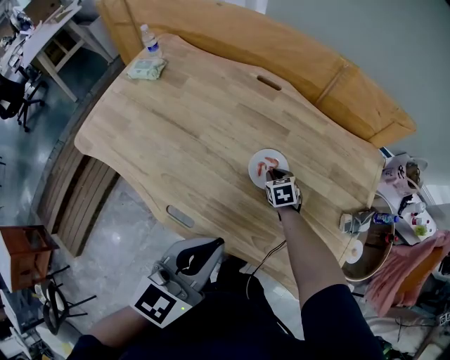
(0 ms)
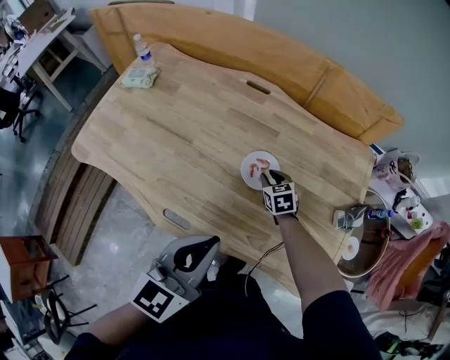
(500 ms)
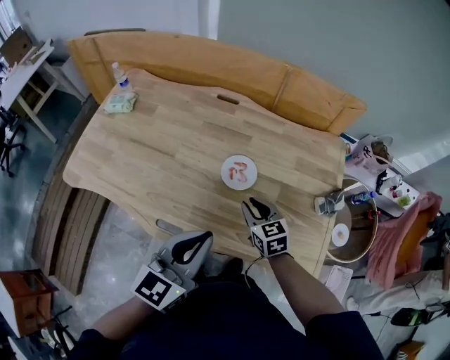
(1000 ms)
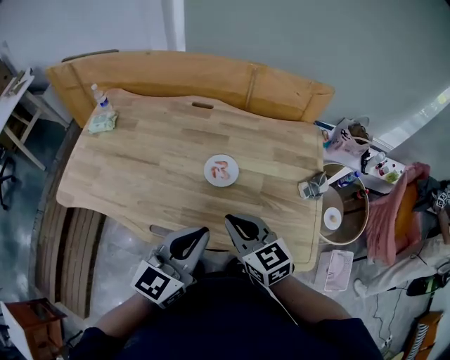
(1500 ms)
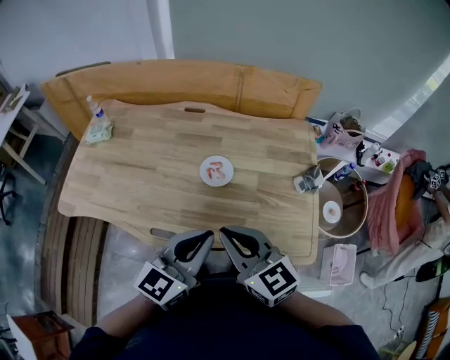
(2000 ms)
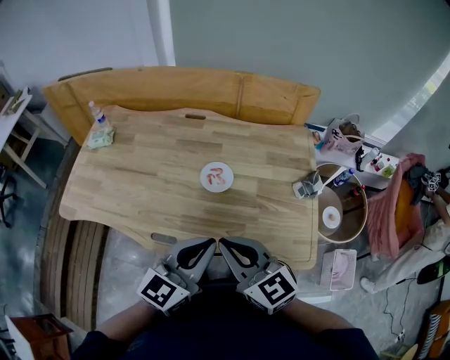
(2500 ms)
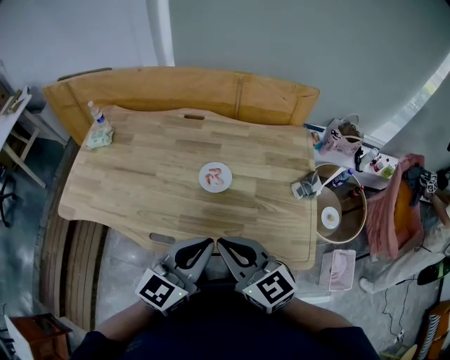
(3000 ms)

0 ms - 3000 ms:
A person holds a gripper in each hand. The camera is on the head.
0 ms - 1500 ms: The left gripper travels backward by about 5 cm. Meanwhile the right gripper is displaced upward and backward by approximately 40 cm, and angles its fingers upward, by about 30 degrees.
1500 ms - 3000 ms: The right gripper is displaced backward and upward by approximately 10 cm.

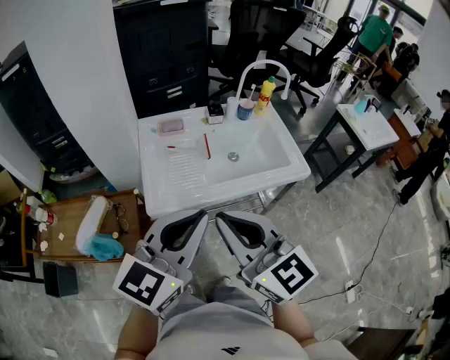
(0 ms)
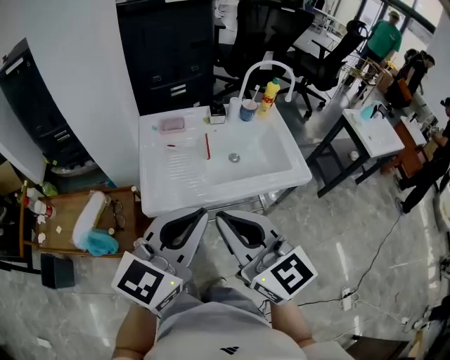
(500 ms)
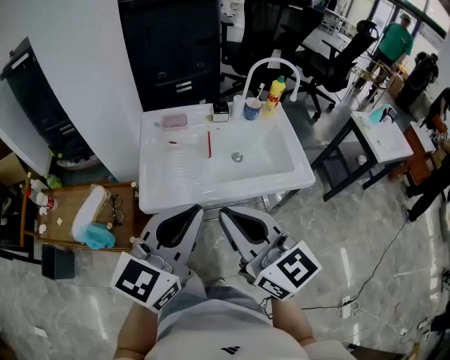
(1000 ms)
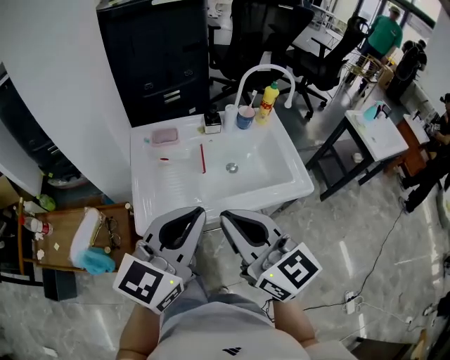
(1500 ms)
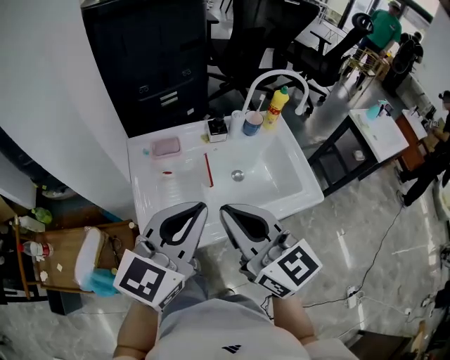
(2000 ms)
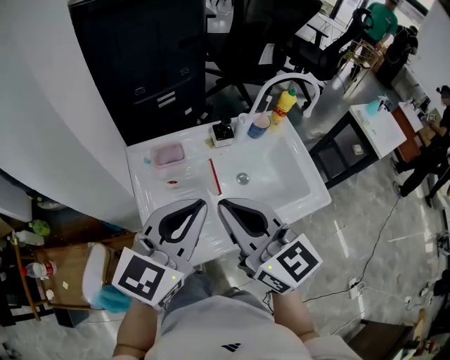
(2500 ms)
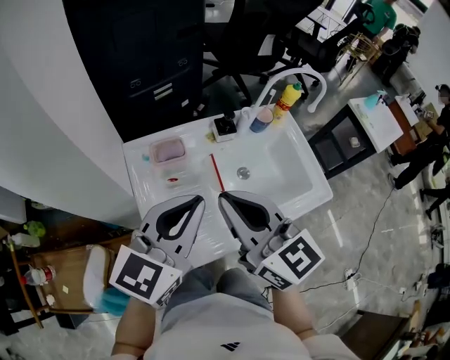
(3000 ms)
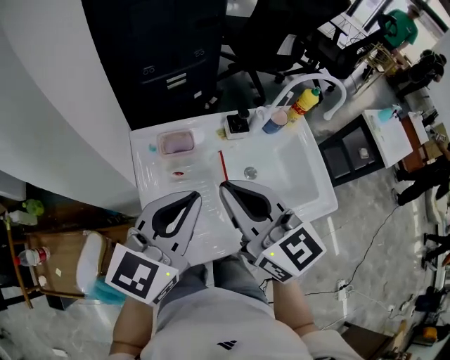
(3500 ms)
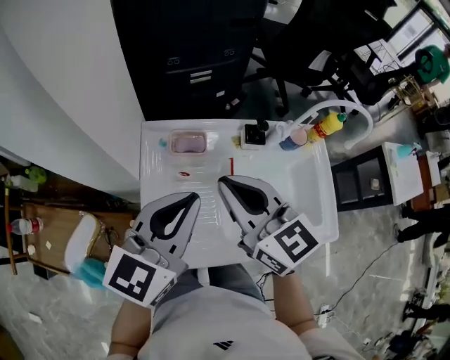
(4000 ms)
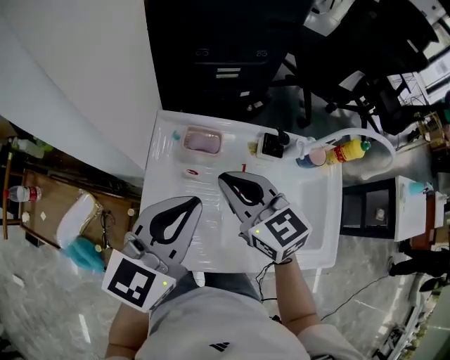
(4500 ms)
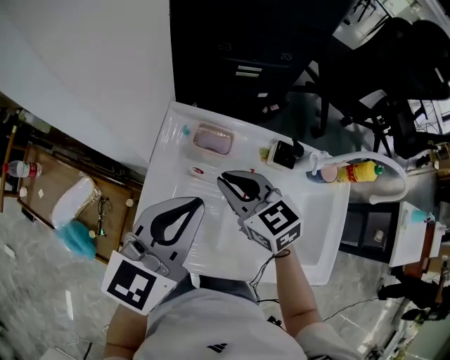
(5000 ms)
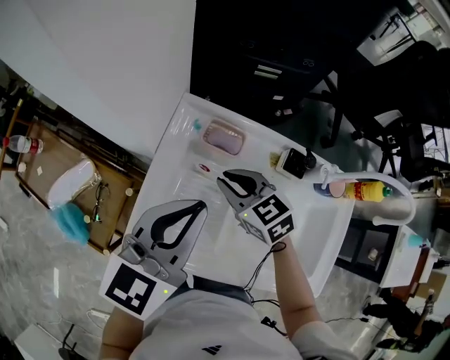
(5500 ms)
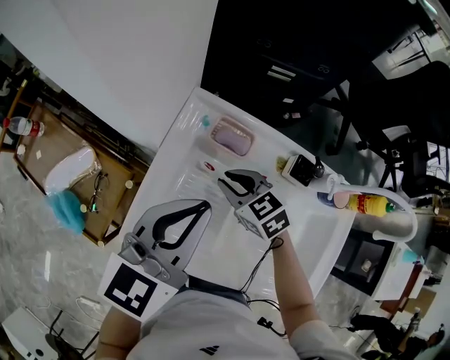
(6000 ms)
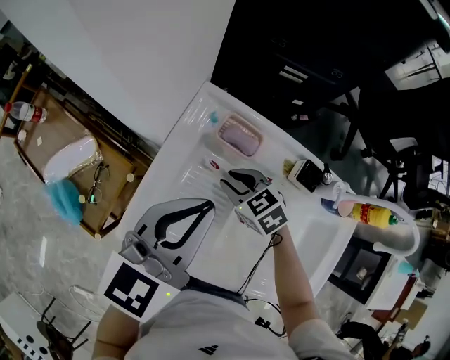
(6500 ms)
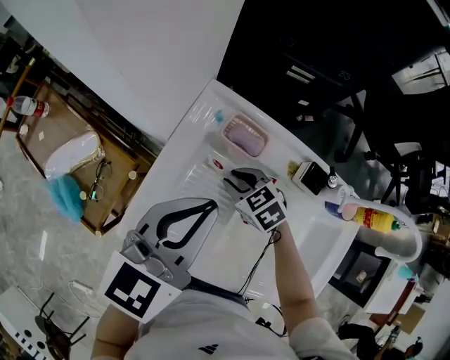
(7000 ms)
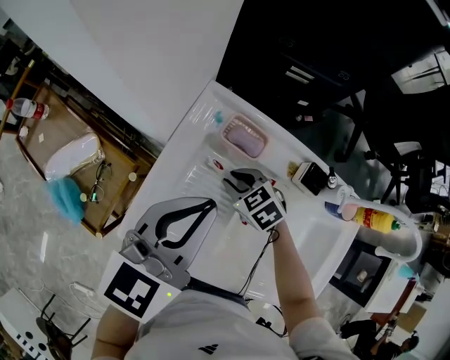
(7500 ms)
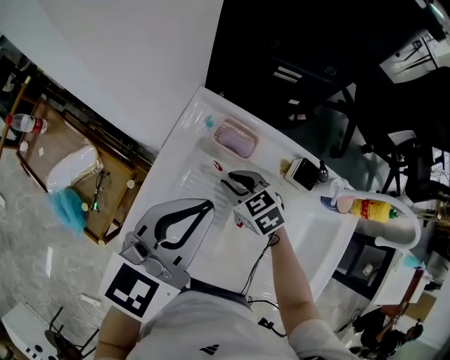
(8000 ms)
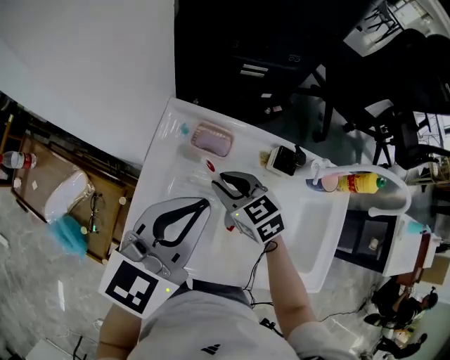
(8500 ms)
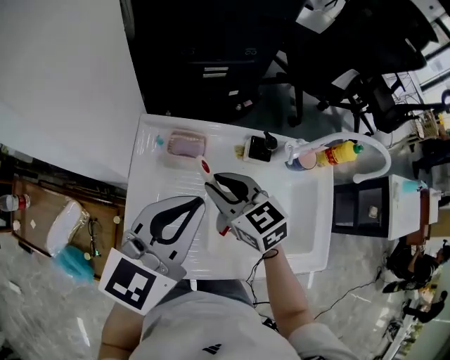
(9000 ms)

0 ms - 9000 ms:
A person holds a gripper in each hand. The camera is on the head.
0 ms - 2000 ms: The grippers both shift forward by about 15 cm.
2000 ms - 4500 ms: The left gripper moves roughly 15 cm, and rotates some 20 degrees. Meanwhile the right gripper shifts by about 25 cm, and swivels some 30 degrees.
4500 ms - 7000 ms: The left gripper travels downward by about 5 cm. Meanwhile the right gripper goes some 25 cm downward, angles its fingers downward, by approximately 30 degrees, and opens its fingers.
7000 ms - 9000 ms: The right gripper travels upward by some 15 cm, and turns by some 40 degrees. The left gripper shifts by roughly 5 cm.

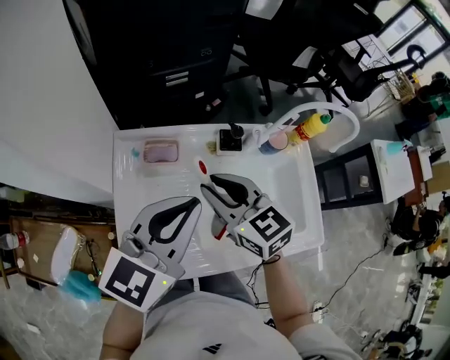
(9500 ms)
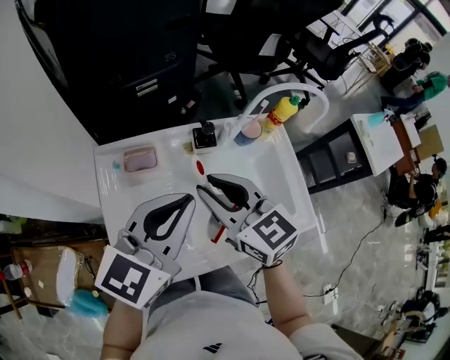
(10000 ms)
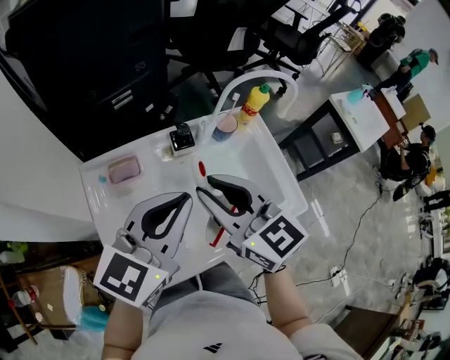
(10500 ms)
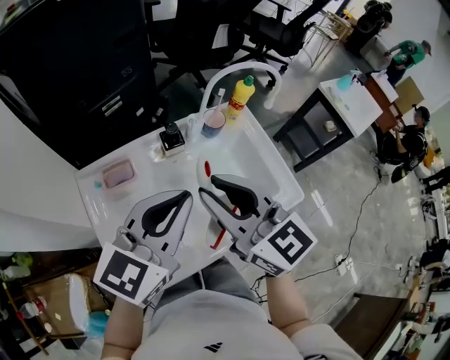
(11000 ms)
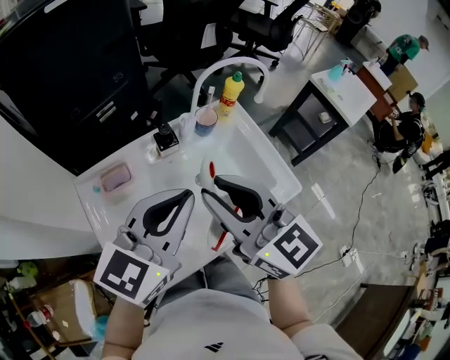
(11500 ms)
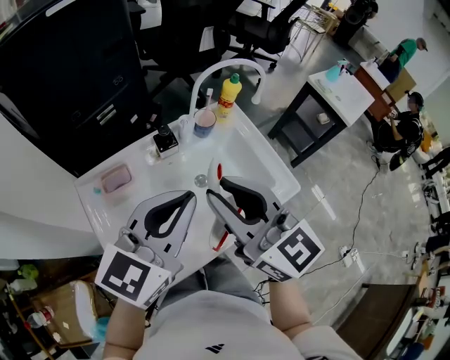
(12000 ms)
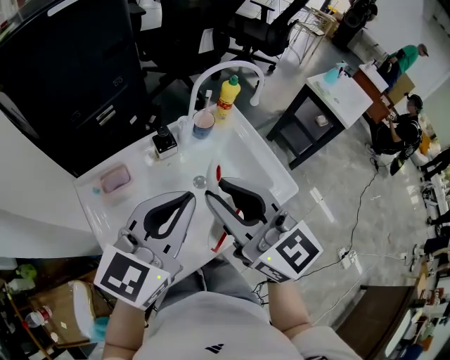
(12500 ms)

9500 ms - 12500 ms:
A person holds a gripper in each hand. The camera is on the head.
9500 ms - 11000 ms: The right gripper is displaced upward, to the right and backward by roughly 15 cm, and rotates approximately 30 degrees; the left gripper heads to the right, covering approximately 10 cm.
11000 ms - 12500 ms: The grippers move only a little.

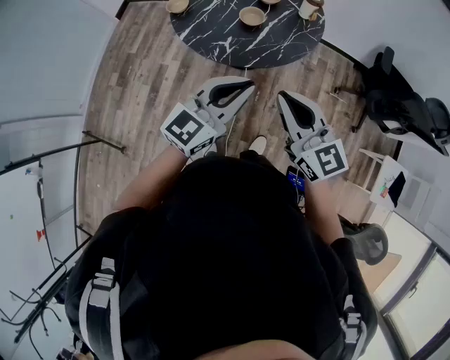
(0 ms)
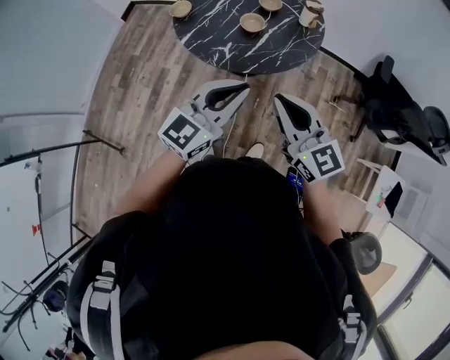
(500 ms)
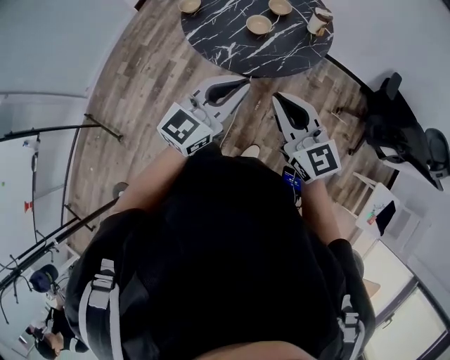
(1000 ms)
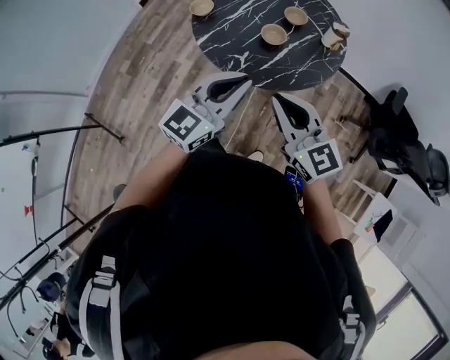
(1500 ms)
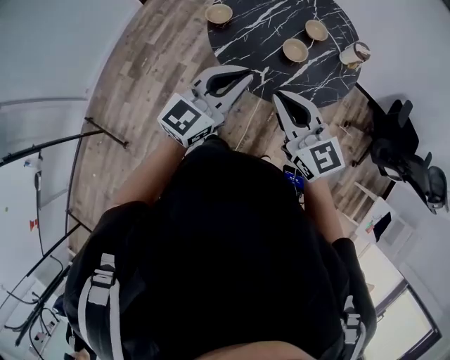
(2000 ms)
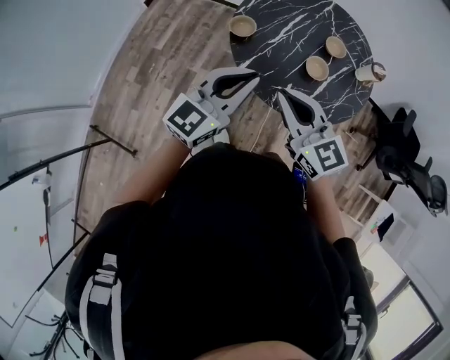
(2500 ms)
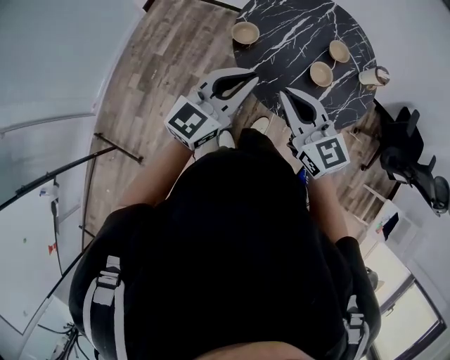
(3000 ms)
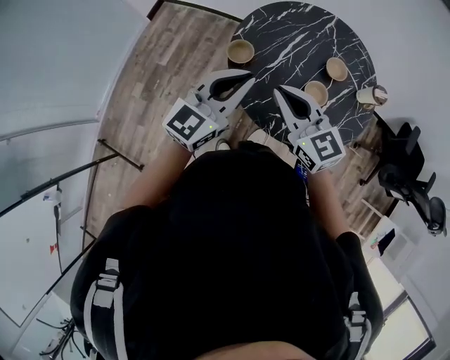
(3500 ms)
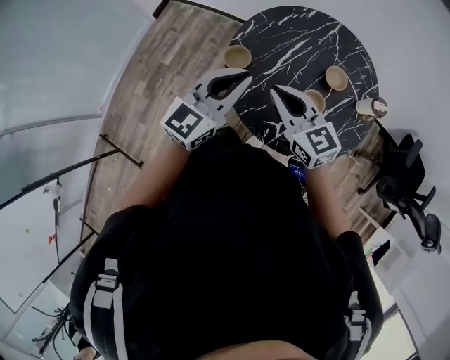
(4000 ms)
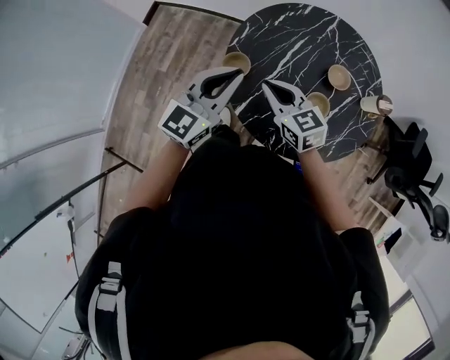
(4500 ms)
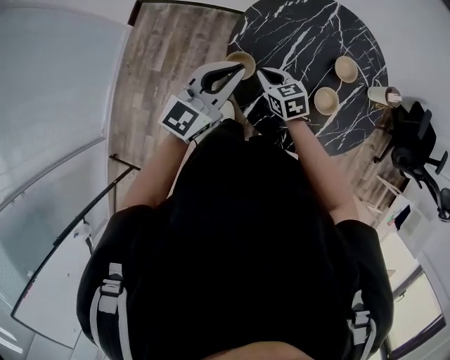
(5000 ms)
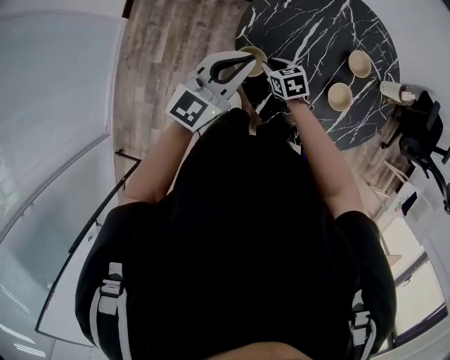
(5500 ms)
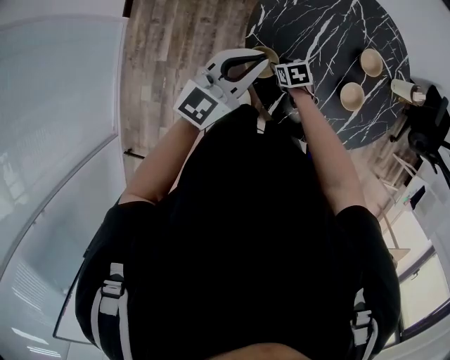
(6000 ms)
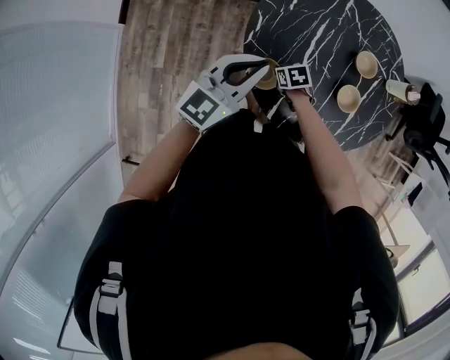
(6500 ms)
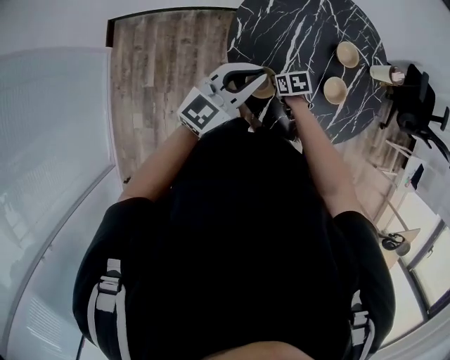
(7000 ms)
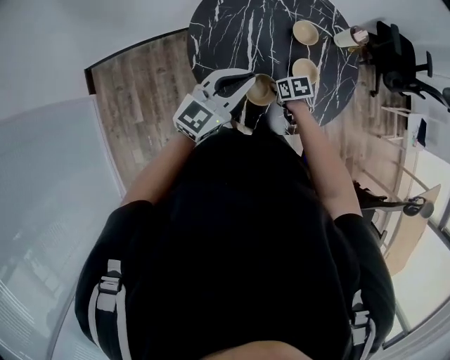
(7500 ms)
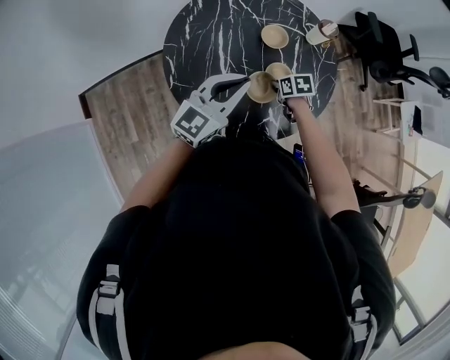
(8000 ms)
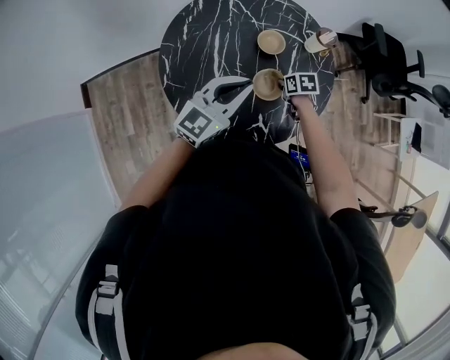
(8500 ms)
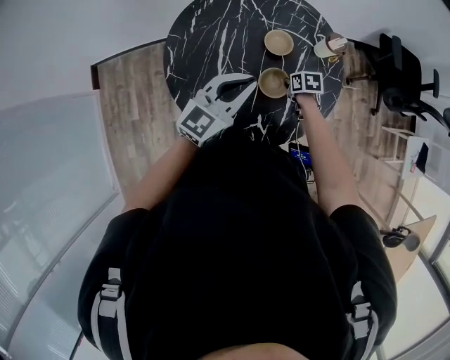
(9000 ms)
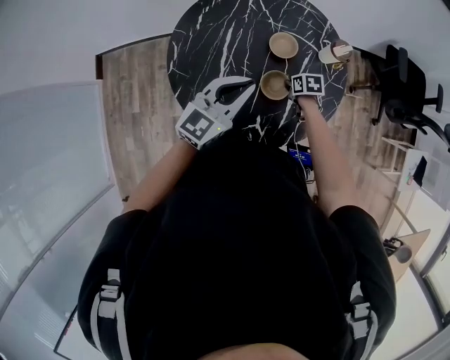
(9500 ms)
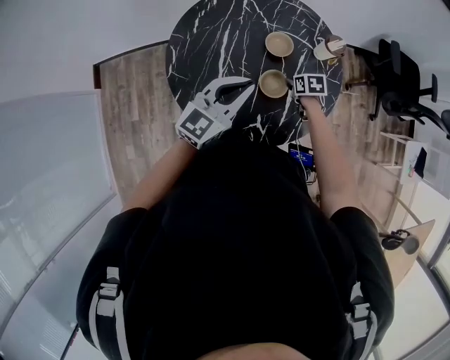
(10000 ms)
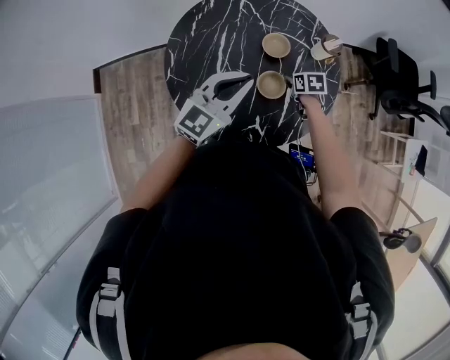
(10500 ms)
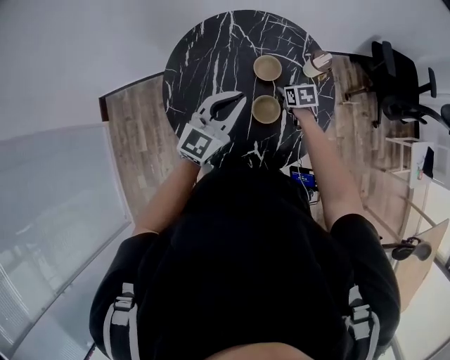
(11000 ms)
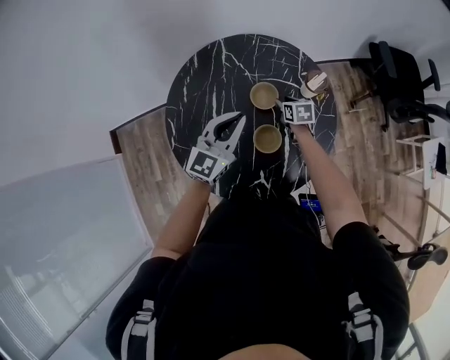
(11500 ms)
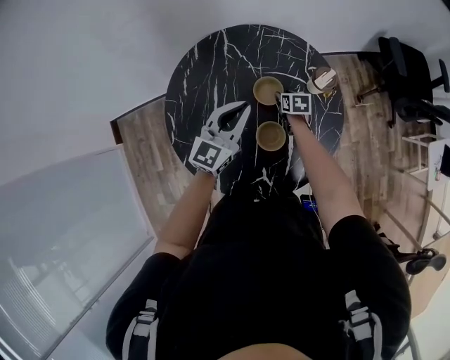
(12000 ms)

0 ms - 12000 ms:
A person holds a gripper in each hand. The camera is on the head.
0 ms - 2000 ms: The grippers both shift forward and to the left by approximately 25 cm.
2000 ms - 4000 ms: The grippers both shift forward by about 25 cm.
4000 ms - 6000 ms: The left gripper goes roughly 25 cm forward, downward and to the left. Meanwhile the right gripper is displaced downward and forward by roughly 40 cm, points its fingers about 50 degrees further downward, and opens its fingers.
6000 ms - 8000 ms: The right gripper changes place by roughly 30 cm, changes its angle by approximately 40 degrees, and closes up. The left gripper changes place by about 20 cm, and turns by about 30 degrees.
8000 ms - 10000 ms: Both grippers travel together to the right, about 10 cm. The right gripper opens up.
10000 ms - 12000 ms: The right gripper shifts roughly 15 cm forward and downward. The left gripper travels forward by about 15 cm.
